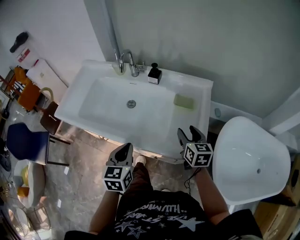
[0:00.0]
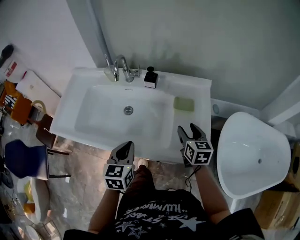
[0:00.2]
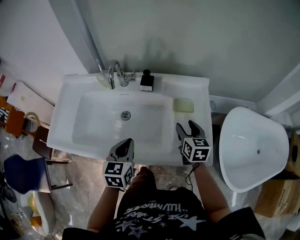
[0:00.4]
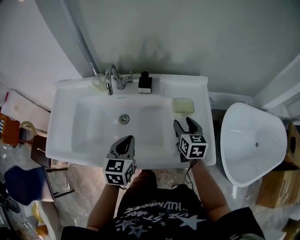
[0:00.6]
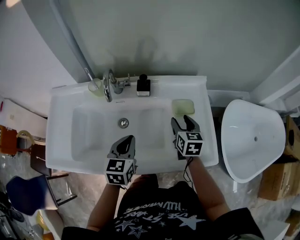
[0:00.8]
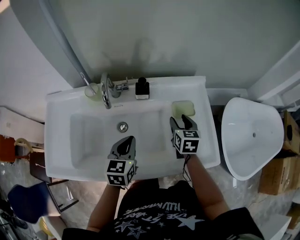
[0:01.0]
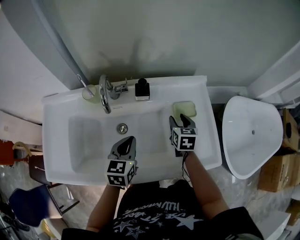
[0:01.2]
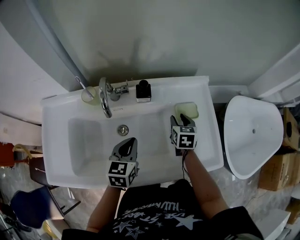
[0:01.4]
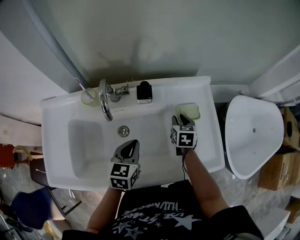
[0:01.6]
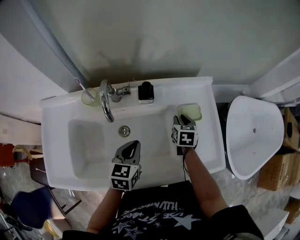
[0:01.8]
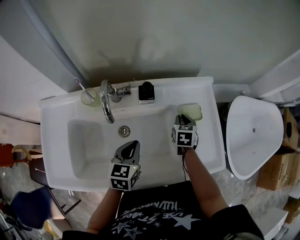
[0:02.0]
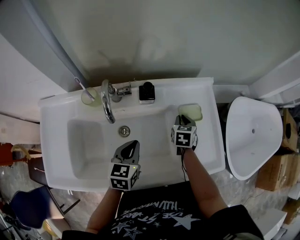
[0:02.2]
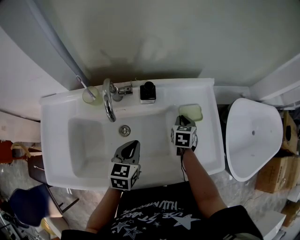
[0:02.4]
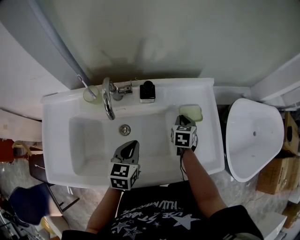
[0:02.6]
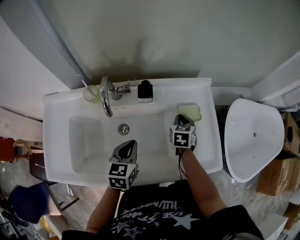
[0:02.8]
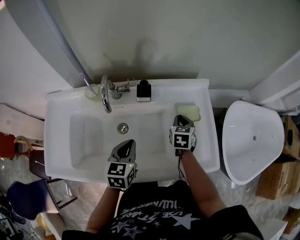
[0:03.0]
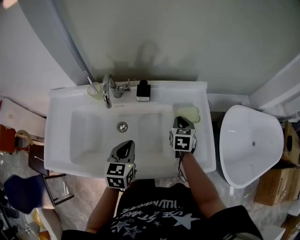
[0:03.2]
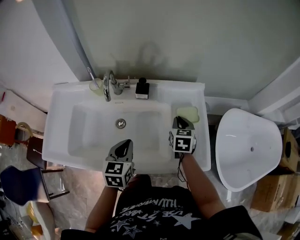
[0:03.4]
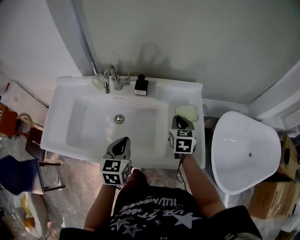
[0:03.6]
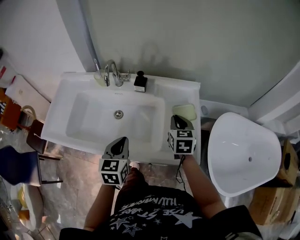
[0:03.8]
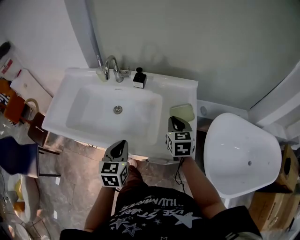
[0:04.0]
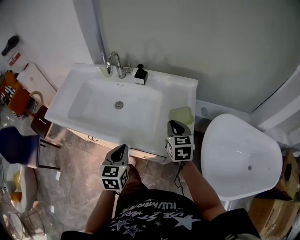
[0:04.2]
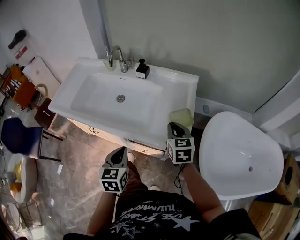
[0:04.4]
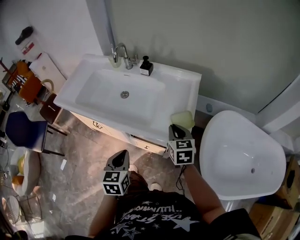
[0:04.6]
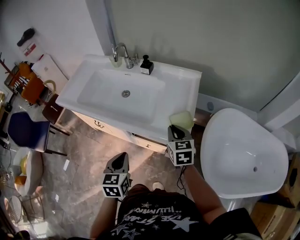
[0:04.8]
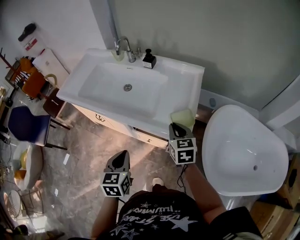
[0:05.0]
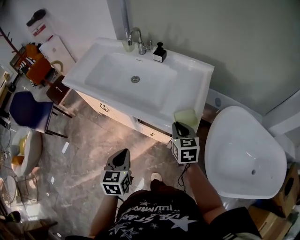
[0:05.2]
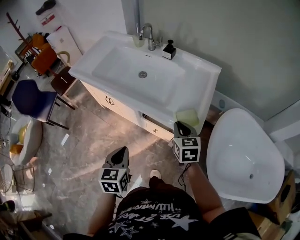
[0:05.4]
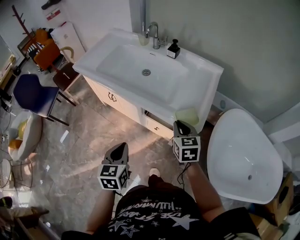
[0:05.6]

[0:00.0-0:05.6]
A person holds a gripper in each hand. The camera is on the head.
0.0 to 1.4 s: The right gripper changes place by about 20 cm, and swivels approximately 30 degrees, while the left gripper shifts by approximately 25 cm, and changes its angle by some 30 degrees.
1.4 to 2.8 s: The right gripper closes up.
2.8 to 4.2 s: The left gripper shifts by approximately 25 cm, and rotates about 30 degrees. Meanwhile the right gripper shifts by approximately 25 cm, and swivels some 30 degrees.
4.2 to 5.6 s: The left gripper moves backward, some 20 cm. The right gripper is displaced backward and to the left by some 20 cm.

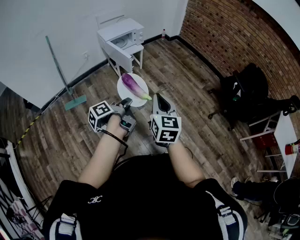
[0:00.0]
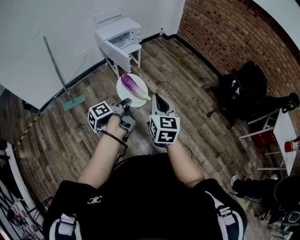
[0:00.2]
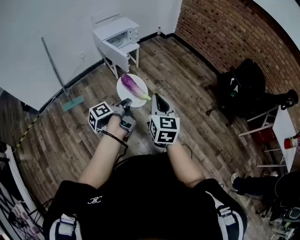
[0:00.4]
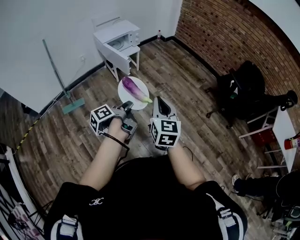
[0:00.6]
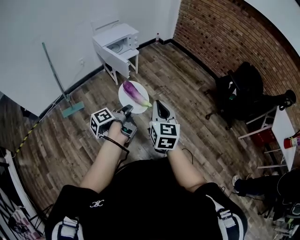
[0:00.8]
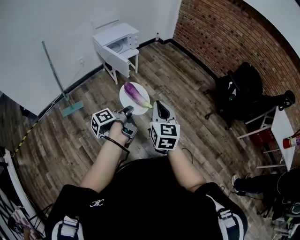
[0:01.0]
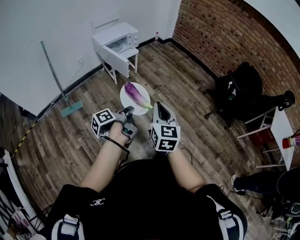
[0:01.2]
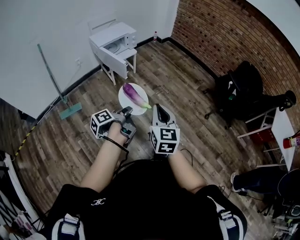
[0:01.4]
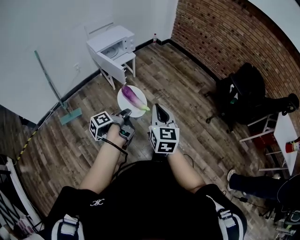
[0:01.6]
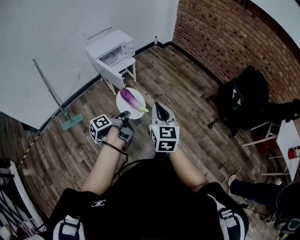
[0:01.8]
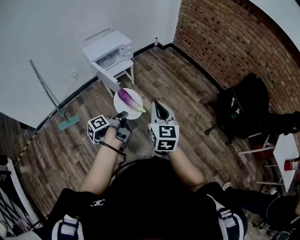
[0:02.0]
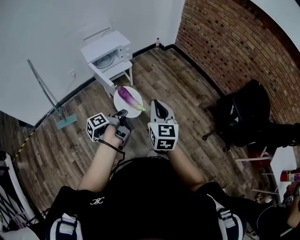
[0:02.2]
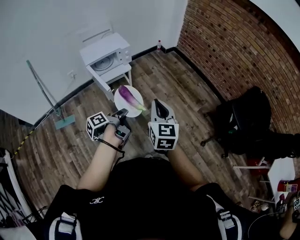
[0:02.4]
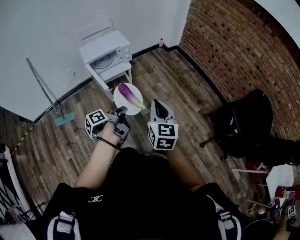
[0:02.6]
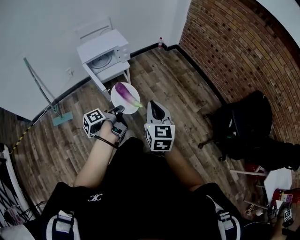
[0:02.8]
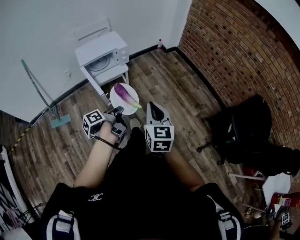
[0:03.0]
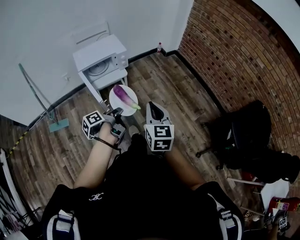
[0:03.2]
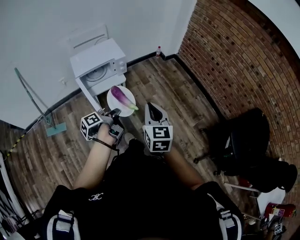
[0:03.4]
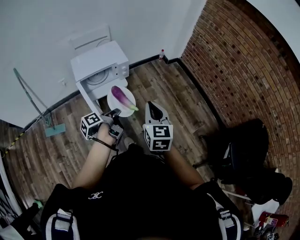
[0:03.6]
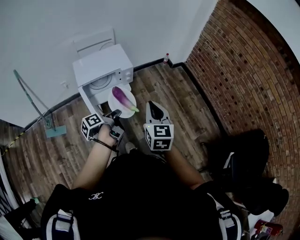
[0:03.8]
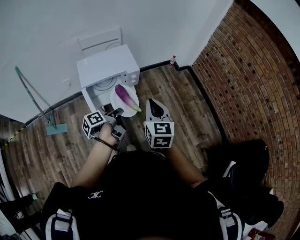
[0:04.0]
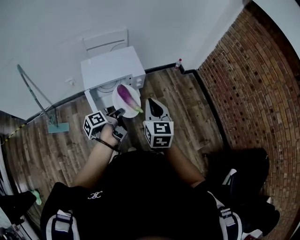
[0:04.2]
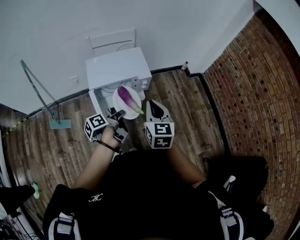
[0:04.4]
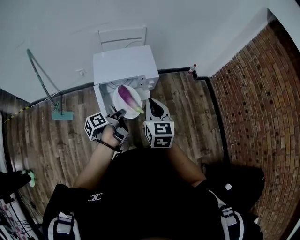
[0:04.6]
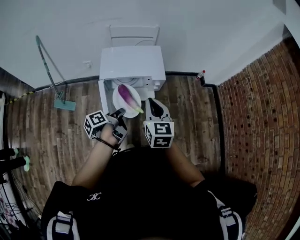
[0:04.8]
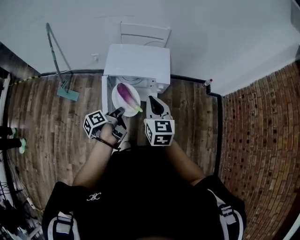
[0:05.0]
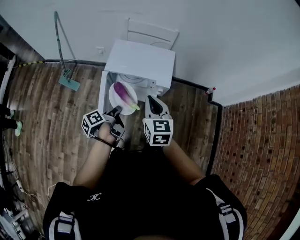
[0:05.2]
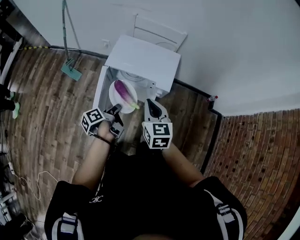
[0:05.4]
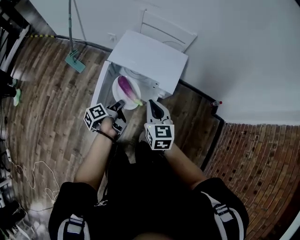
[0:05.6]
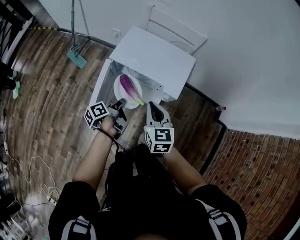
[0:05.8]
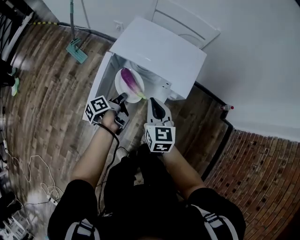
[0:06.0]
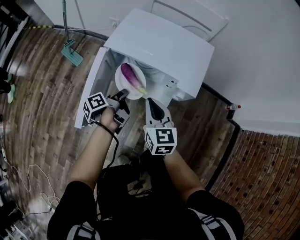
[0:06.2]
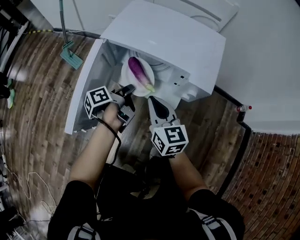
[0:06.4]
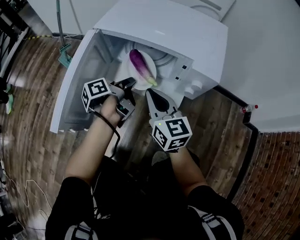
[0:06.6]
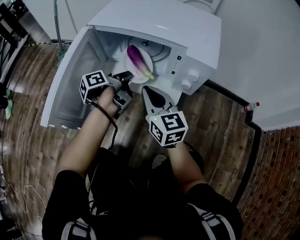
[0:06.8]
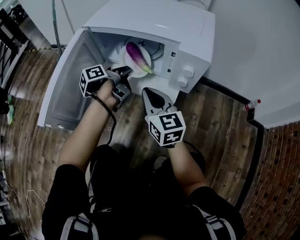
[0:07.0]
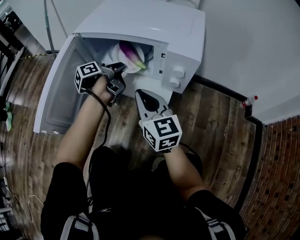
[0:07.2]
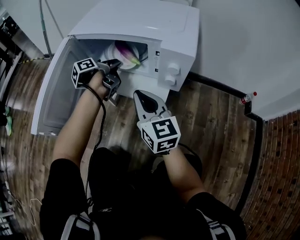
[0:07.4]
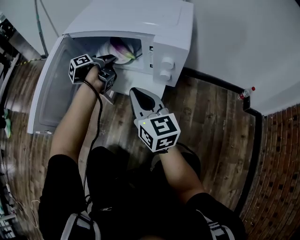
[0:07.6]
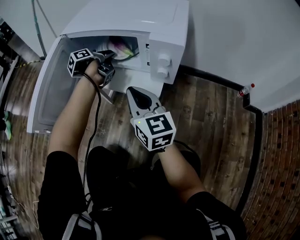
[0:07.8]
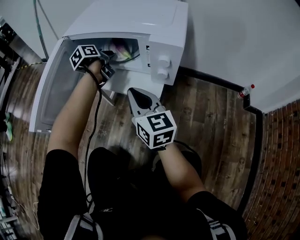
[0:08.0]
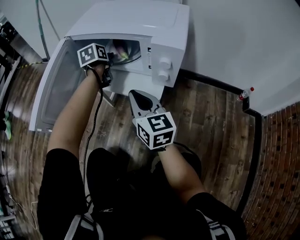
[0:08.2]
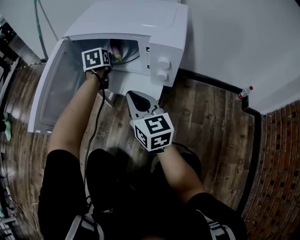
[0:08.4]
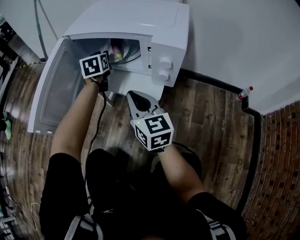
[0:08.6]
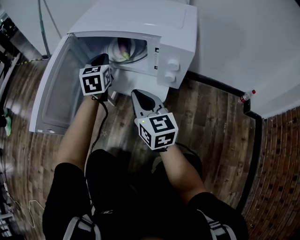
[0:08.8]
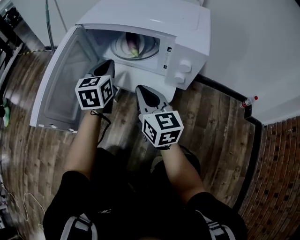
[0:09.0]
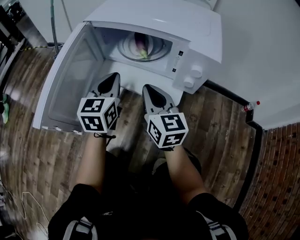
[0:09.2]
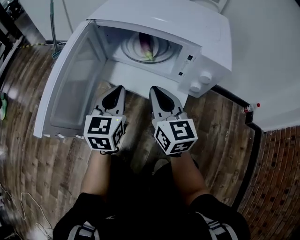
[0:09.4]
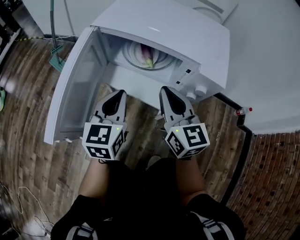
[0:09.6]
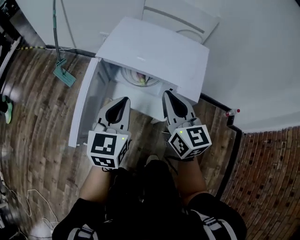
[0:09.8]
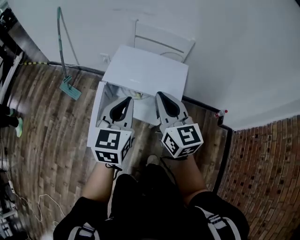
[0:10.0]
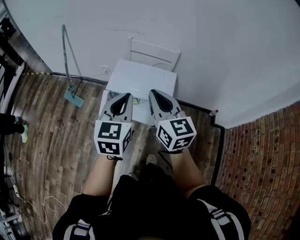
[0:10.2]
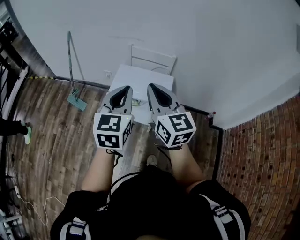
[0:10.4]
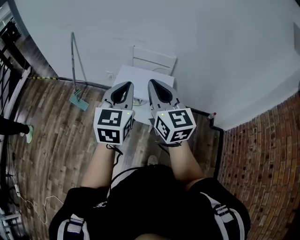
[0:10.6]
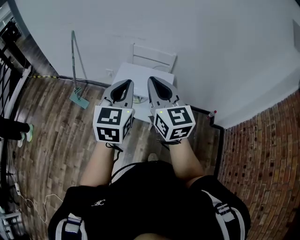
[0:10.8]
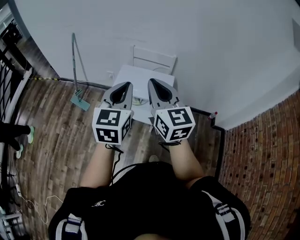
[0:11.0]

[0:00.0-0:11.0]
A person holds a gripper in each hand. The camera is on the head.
0.0 to 1.6 s: The right gripper ends up approximately 5 cm from where it was.
1.6 to 3.2 s: The right gripper shifts by about 40 cm.
3.2 to 4.8 s: The right gripper changes place by approximately 40 cm, and swivels roughly 30 degrees.
4.8 to 6.2 s: The right gripper heads downward, covering about 25 cm, and changes its angle by roughly 30 degrees.
6.2 to 7.8 s: The right gripper goes some 15 cm downward.
9.4 to 11.0 s: The right gripper travels upward by about 60 cm.

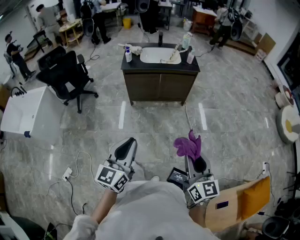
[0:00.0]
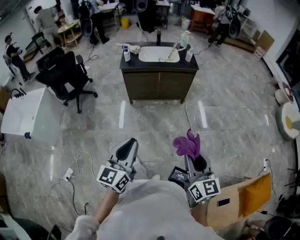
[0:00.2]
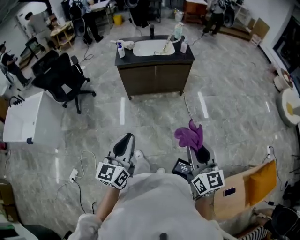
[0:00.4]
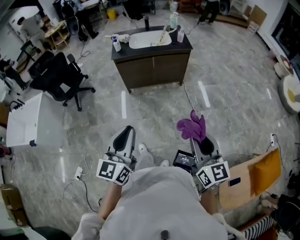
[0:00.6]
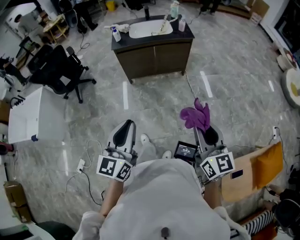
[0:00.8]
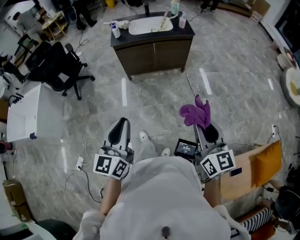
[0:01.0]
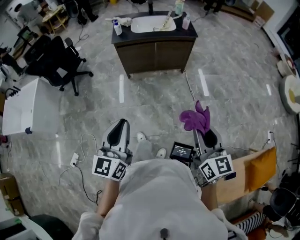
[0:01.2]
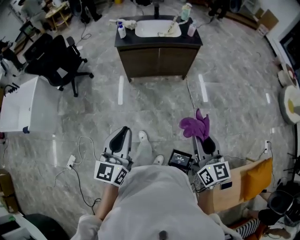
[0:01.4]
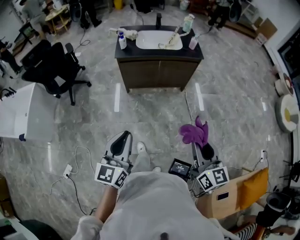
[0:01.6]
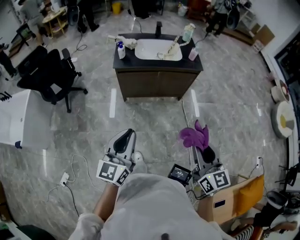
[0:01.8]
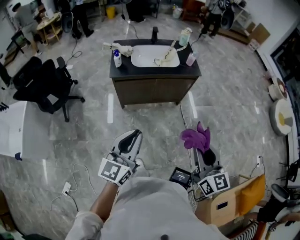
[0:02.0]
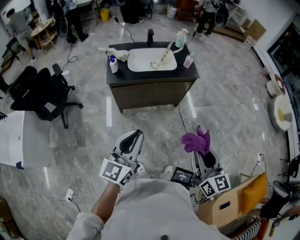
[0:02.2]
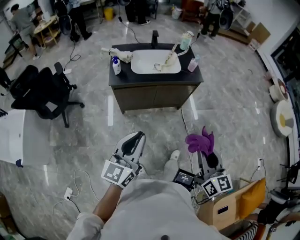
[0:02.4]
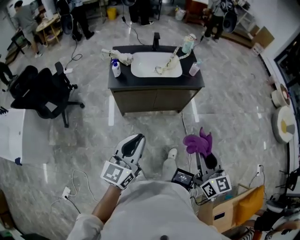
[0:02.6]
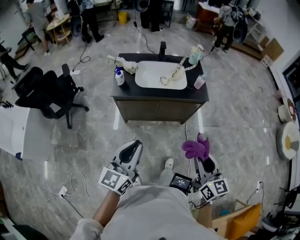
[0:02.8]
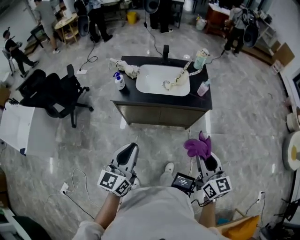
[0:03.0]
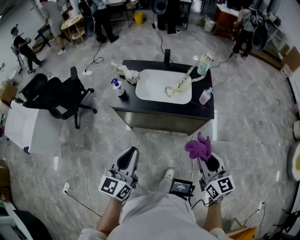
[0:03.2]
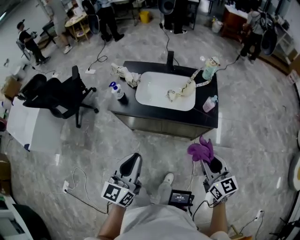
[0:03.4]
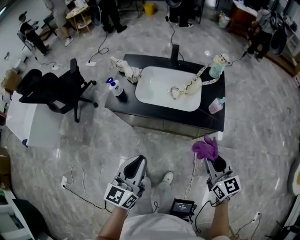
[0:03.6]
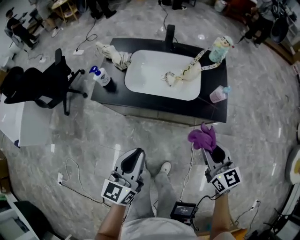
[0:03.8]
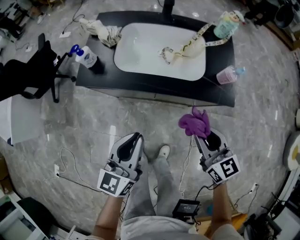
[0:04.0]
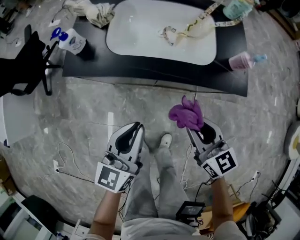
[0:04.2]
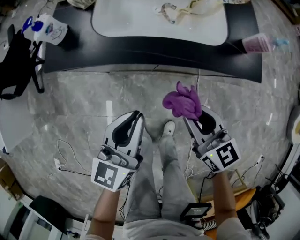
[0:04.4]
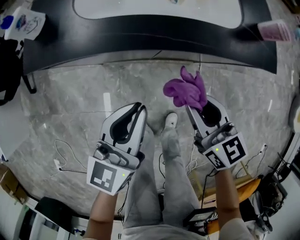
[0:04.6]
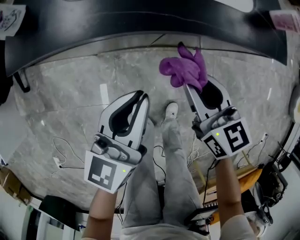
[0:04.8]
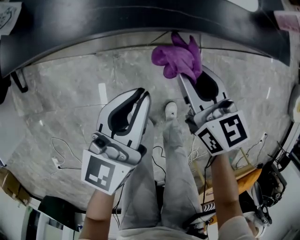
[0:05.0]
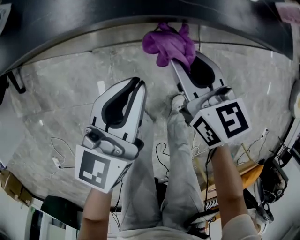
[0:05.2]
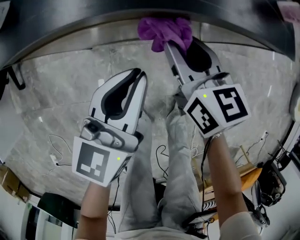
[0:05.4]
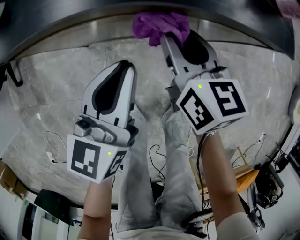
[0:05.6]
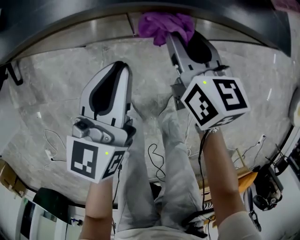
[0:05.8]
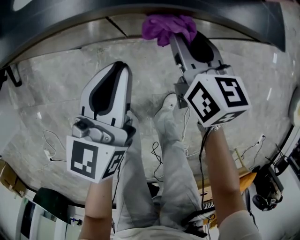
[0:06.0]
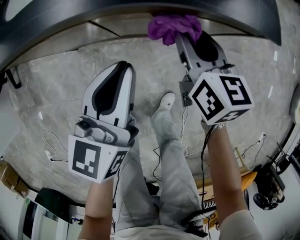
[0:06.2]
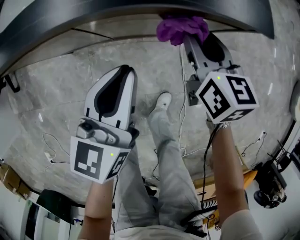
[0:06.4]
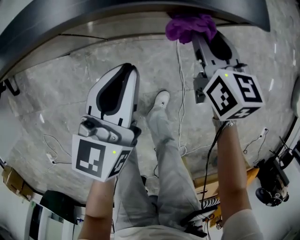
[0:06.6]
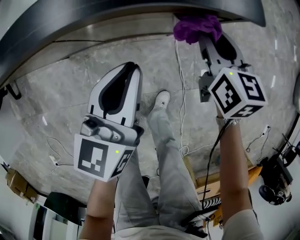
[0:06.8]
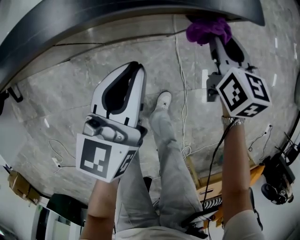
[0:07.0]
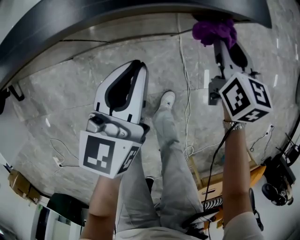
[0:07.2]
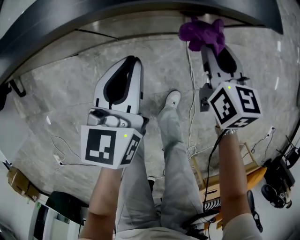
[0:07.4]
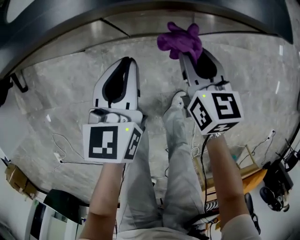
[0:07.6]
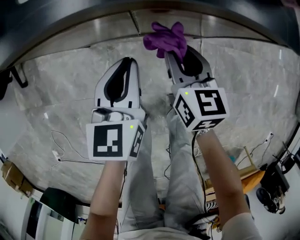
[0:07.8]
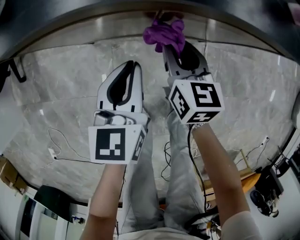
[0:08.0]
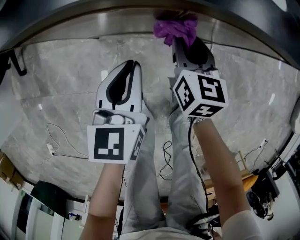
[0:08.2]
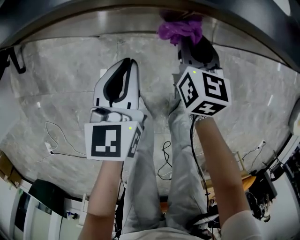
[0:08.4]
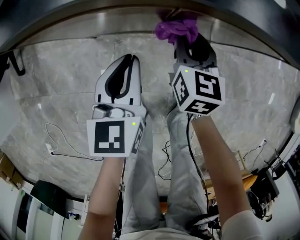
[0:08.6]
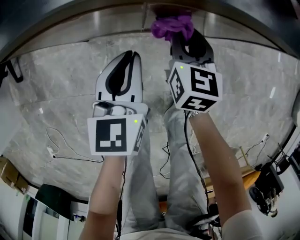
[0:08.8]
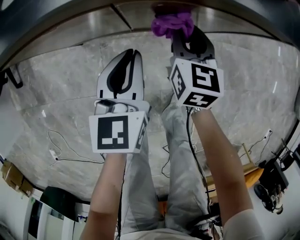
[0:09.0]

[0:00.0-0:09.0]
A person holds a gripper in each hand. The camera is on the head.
0.0 to 1.6 s: The left gripper is displaced forward and to the left by roughly 10 cm. The right gripper is displaced forward by some 10 cm.
1.6 to 3.0 s: The two grippers go roughly 35 cm forward.
3.0 to 4.4 s: Both grippers move downward and forward, some 40 cm. The right gripper swivels roughly 20 degrees.
4.4 to 6.0 s: The left gripper heads downward and to the right, covering about 15 cm; the right gripper goes about 20 cm downward, forward and to the right, and turns by roughly 20 degrees.
6.0 to 7.6 s: The right gripper moves approximately 20 cm to the right and comes back; the left gripper shifts roughly 5 cm downward, and travels to the right and back again, roughly 15 cm each way.
7.6 to 9.0 s: The left gripper reaches approximately 15 cm to the left, then returns, while the right gripper goes some 10 cm forward and downward, and travels to the left and back again, roughly 15 cm each way.
